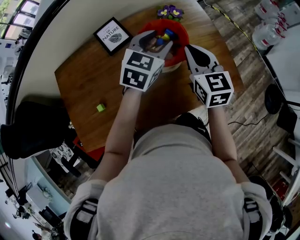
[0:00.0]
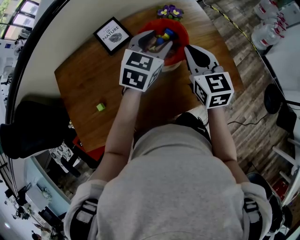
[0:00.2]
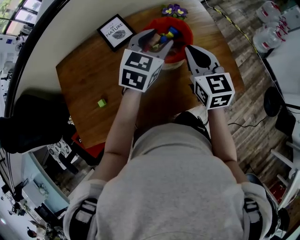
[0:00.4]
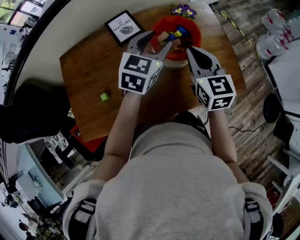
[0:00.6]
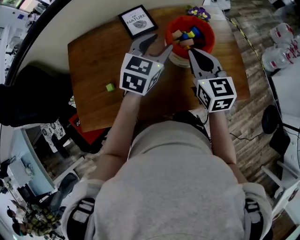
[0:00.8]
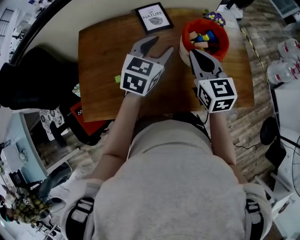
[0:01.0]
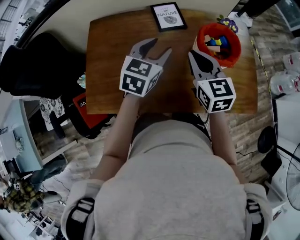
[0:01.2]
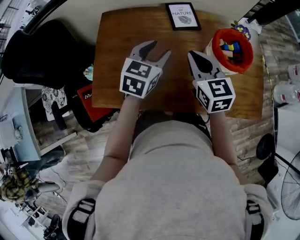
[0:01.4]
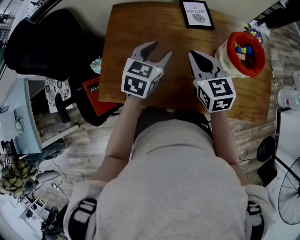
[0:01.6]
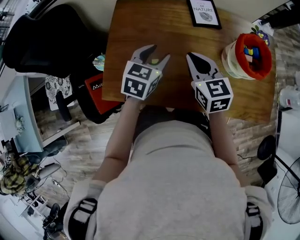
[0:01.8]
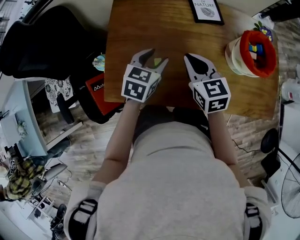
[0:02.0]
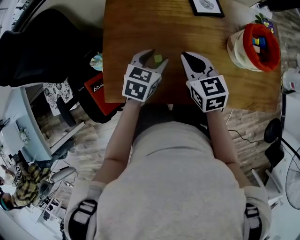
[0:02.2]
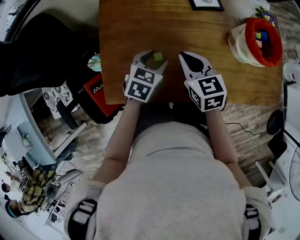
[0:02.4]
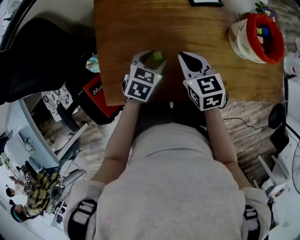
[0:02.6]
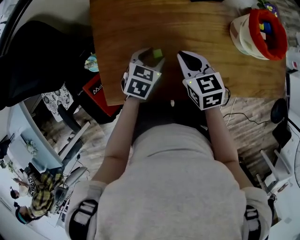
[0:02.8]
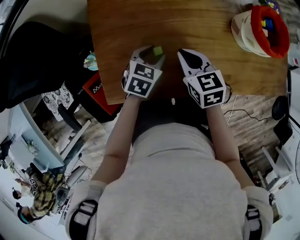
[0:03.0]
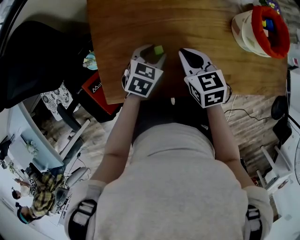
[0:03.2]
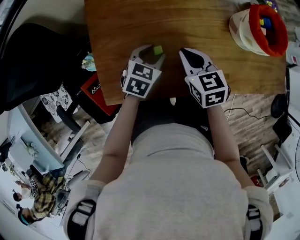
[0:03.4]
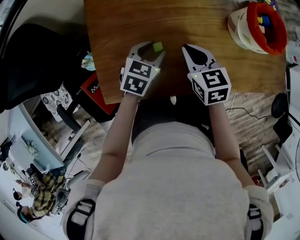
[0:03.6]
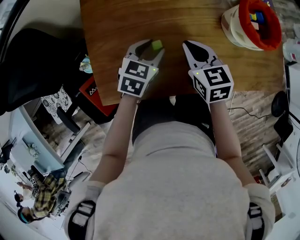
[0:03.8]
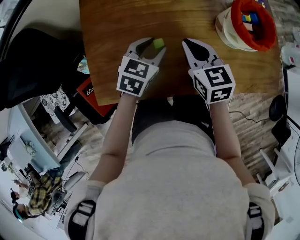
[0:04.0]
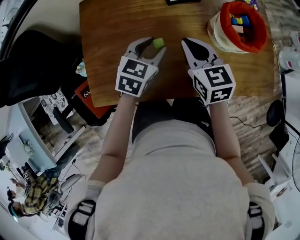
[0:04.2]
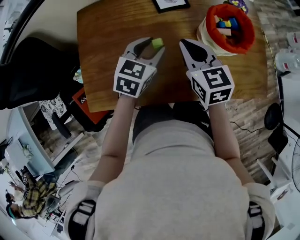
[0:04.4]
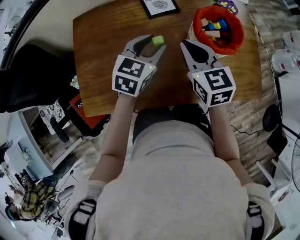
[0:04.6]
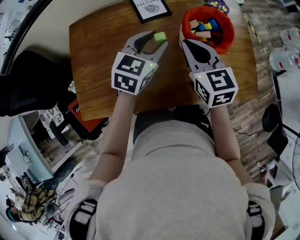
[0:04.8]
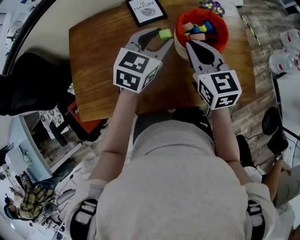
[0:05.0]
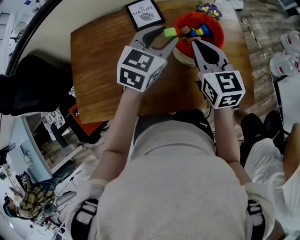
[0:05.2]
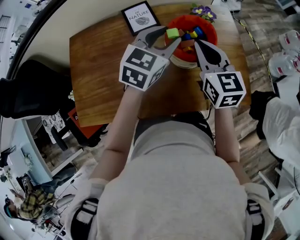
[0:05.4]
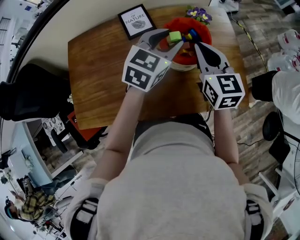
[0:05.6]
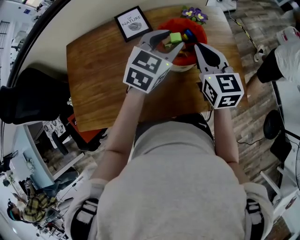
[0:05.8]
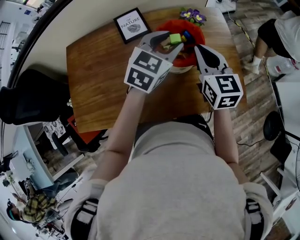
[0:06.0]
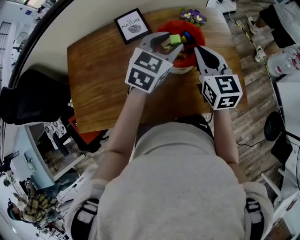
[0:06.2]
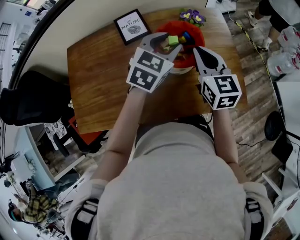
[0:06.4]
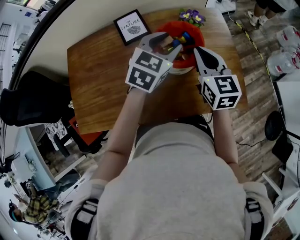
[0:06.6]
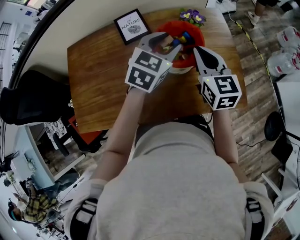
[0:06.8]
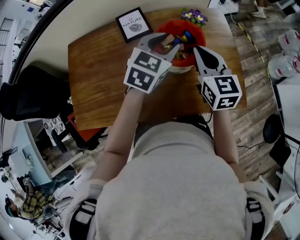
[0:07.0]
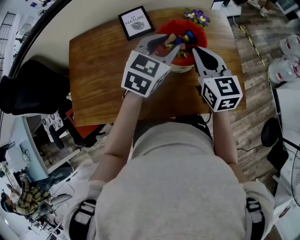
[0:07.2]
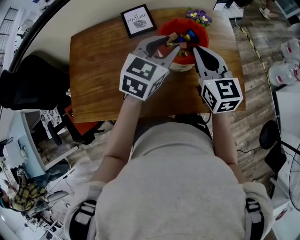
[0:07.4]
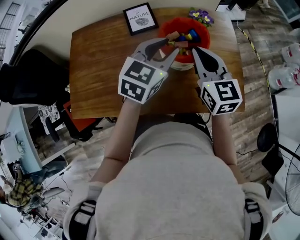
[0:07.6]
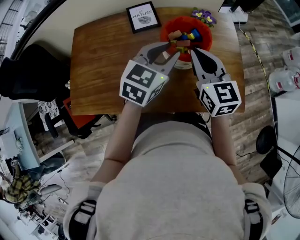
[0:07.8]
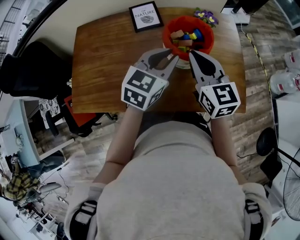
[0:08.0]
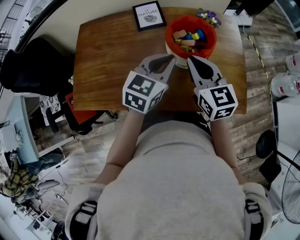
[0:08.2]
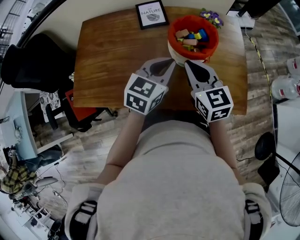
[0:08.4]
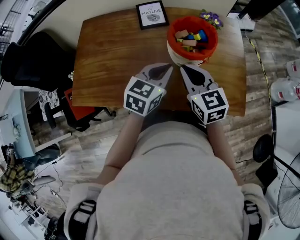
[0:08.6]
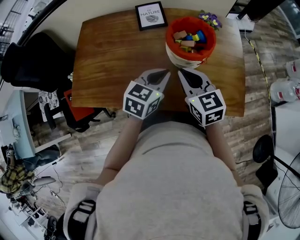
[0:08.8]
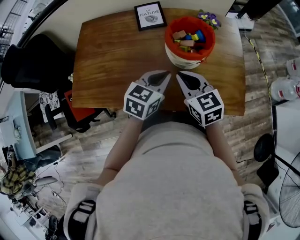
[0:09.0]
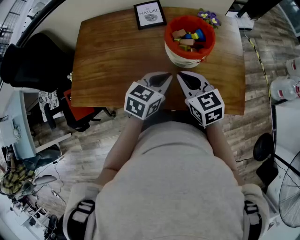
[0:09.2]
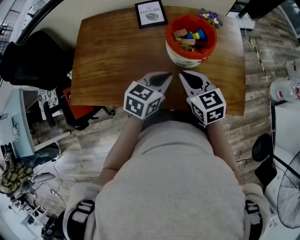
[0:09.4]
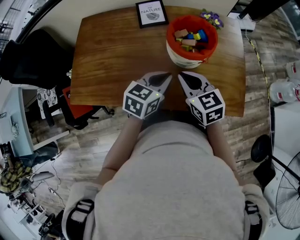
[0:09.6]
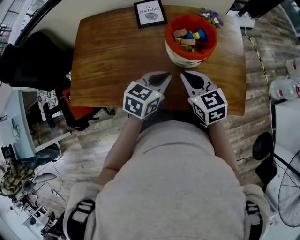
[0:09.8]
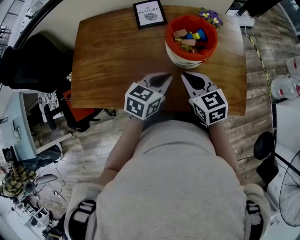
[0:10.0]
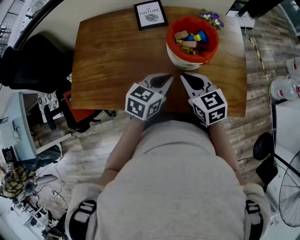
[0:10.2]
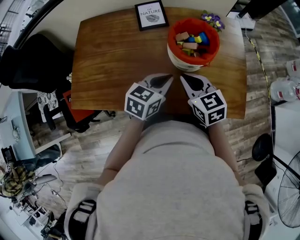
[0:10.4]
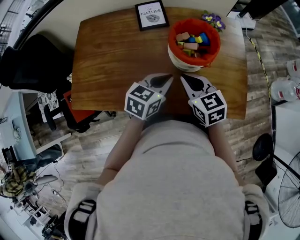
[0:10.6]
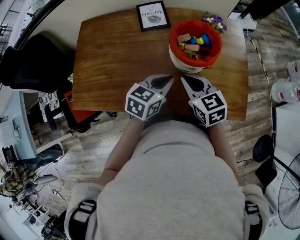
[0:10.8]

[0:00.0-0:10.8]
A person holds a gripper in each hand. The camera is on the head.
0:00.0 to 0:01.6: The right gripper changes place by roughly 30 cm, and changes its angle by some 30 degrees, while the left gripper ends up approximately 35 cm from where it was, and turns by some 30 degrees.
0:01.6 to 0:03.0: The right gripper goes some 15 cm downward and to the left, and rotates approximately 20 degrees. Meanwhile the left gripper heads downward, covering approximately 15 cm, and swivels about 20 degrees.
0:03.0 to 0:04.6: The two grippers go some 25 cm to the right, upward and forward. The left gripper swivels some 20 degrees.
0:04.6 to 0:06.2: The two grippers go some 20 cm to the right.
0:06.2 to 0:07.8: The right gripper moves some 5 cm. The left gripper moves backward, some 5 cm.
0:07.8 to 0:09.2: The two grippers go about 10 cm downward and backward. The right gripper swivels some 20 degrees; the left gripper closes up.
0:09.2 to 0:10.8: The grippers stay close to where they were, moving slightly.

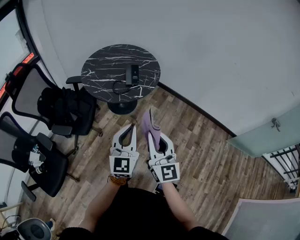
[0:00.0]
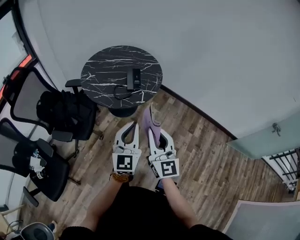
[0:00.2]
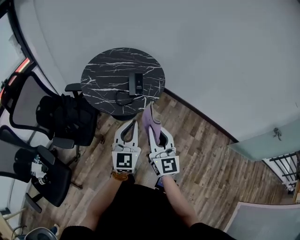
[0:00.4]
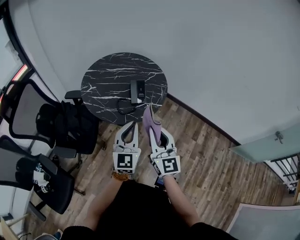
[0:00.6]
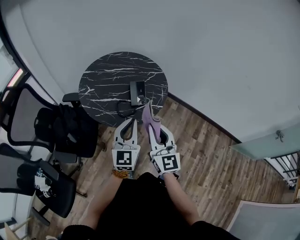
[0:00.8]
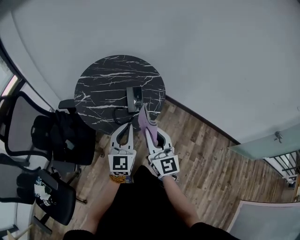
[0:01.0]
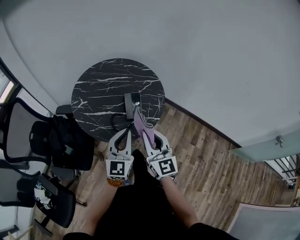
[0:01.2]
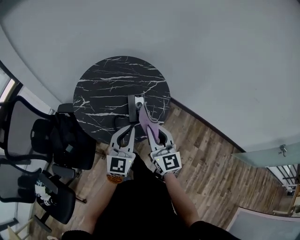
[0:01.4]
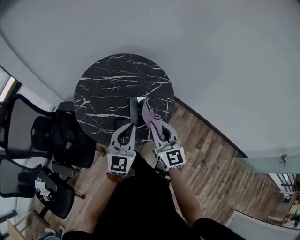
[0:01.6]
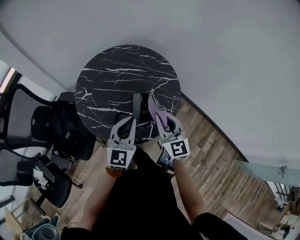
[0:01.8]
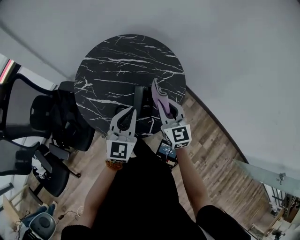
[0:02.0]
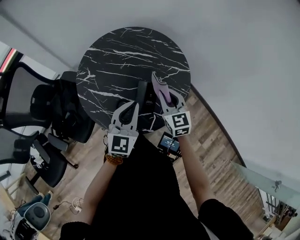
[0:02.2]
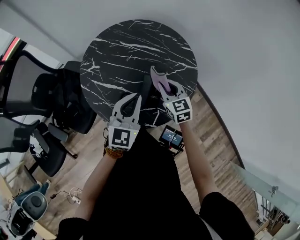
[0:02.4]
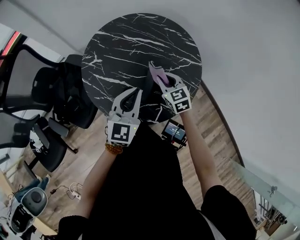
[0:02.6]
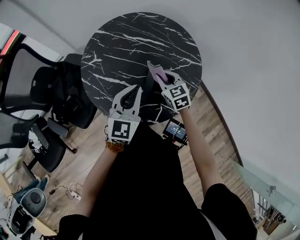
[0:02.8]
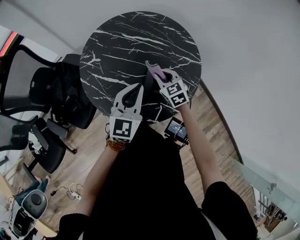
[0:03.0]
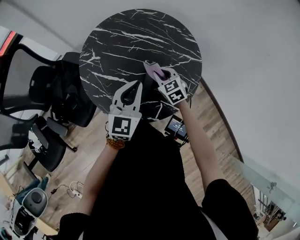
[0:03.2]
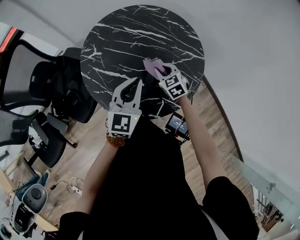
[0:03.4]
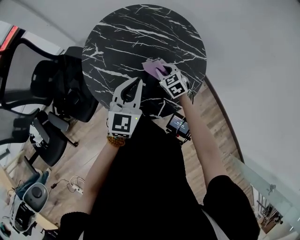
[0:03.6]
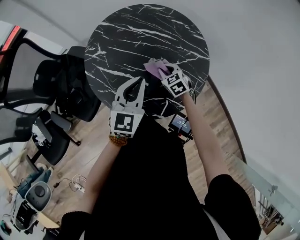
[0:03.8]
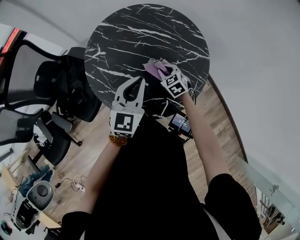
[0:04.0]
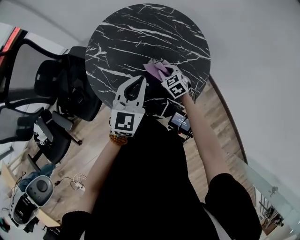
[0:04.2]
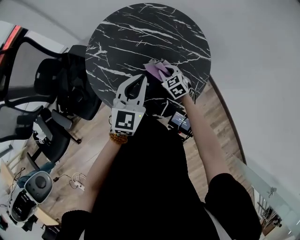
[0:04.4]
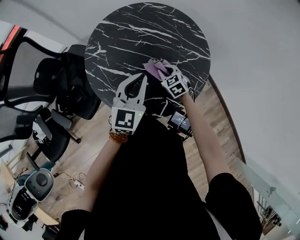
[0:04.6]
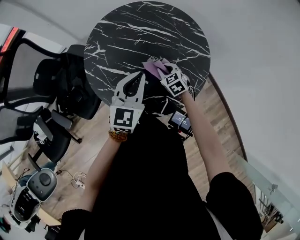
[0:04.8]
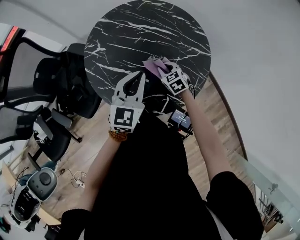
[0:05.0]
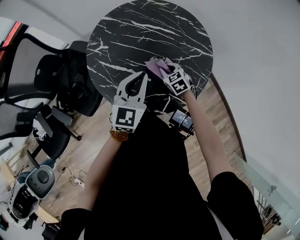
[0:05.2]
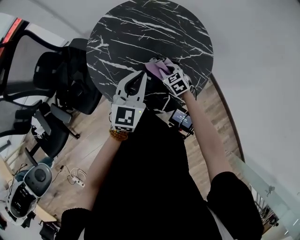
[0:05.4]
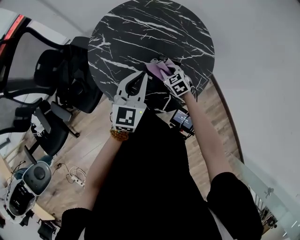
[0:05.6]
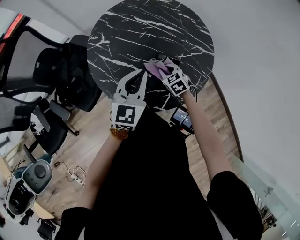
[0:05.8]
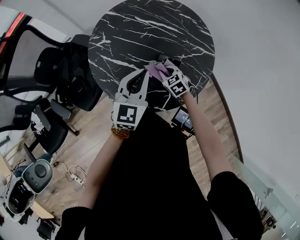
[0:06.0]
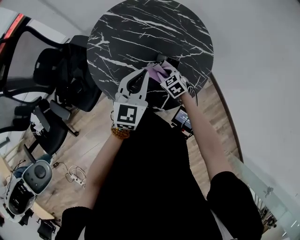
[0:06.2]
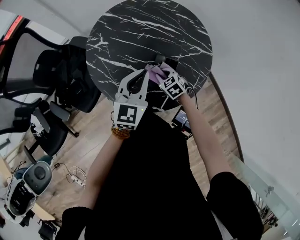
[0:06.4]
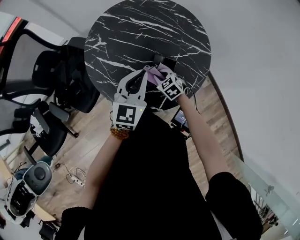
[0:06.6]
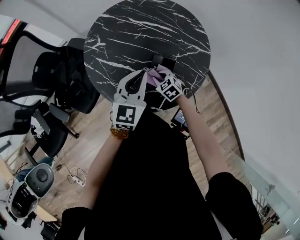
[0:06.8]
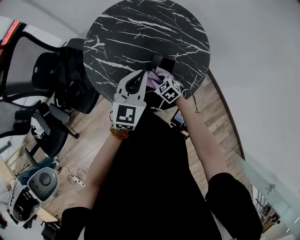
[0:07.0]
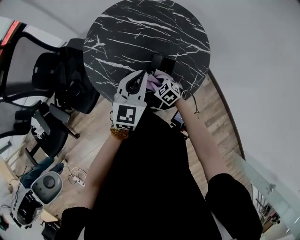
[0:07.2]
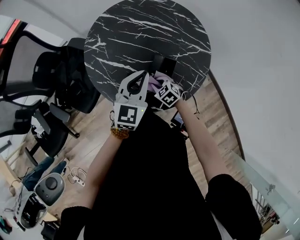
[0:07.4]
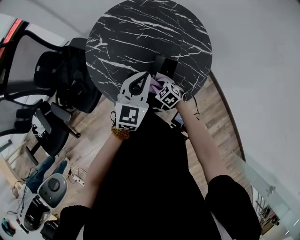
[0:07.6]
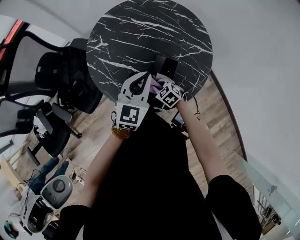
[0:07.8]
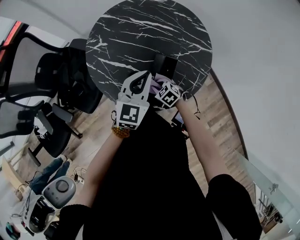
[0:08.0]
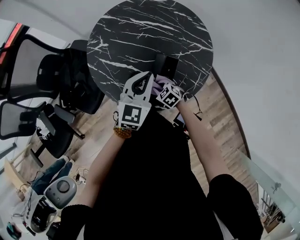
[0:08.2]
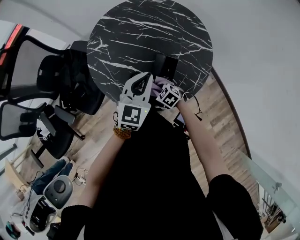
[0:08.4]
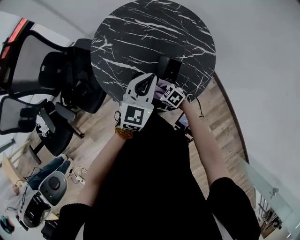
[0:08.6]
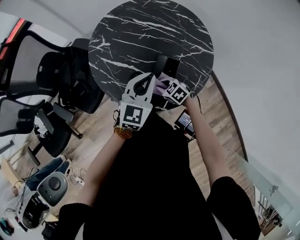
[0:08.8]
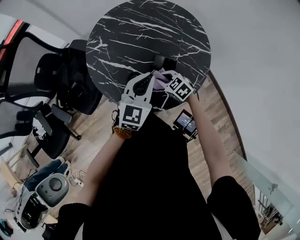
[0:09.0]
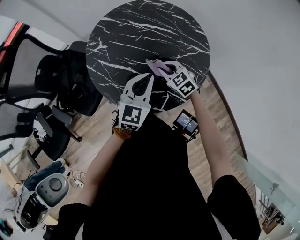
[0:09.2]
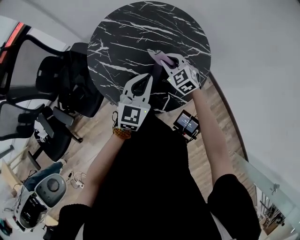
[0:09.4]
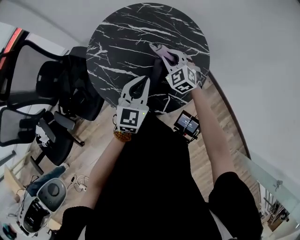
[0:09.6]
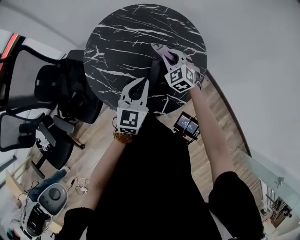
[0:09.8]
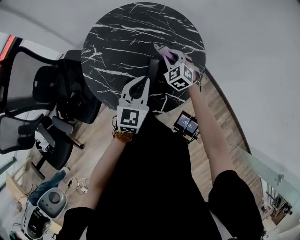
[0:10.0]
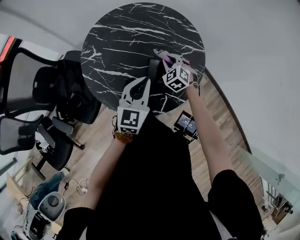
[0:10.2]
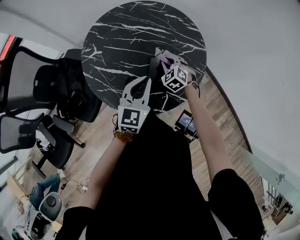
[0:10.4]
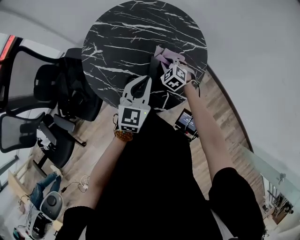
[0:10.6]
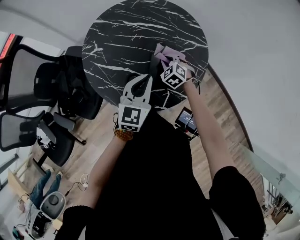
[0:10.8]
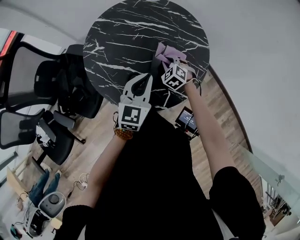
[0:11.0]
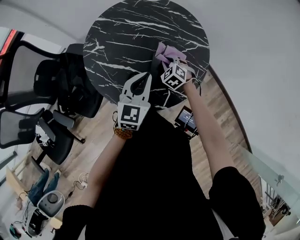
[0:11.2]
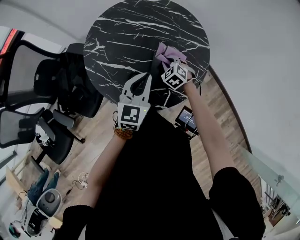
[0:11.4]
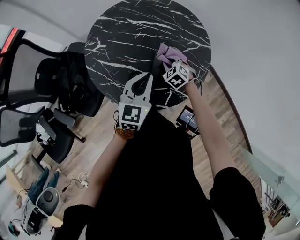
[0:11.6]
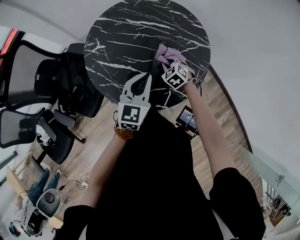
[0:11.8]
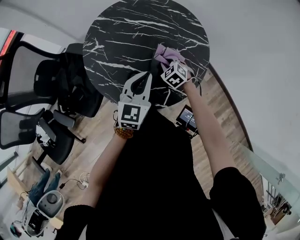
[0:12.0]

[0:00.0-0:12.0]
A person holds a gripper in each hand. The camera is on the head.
0:00.0 to 0:01.6: Both grippers are carried forward, roughly 50 cm.
0:01.6 to 0:03.0: The right gripper travels downward and forward by roughly 30 cm, and tilts its fingers some 30 degrees downward, while the left gripper heads forward and downward, covering some 15 cm.
0:03.0 to 0:04.4: The right gripper travels downward by about 10 cm.
0:04.4 to 0:06.0: The right gripper changes place by about 5 cm.
0:06.0 to 0:07.6: The right gripper goes some 5 cm backward.
0:07.6 to 0:09.0: The right gripper goes some 5 cm upward.
0:09.0 to 0:10.4: The right gripper goes approximately 10 cm forward and to the right, and changes its angle by roughly 30 degrees.
0:10.4 to 0:12.0: The grippers stay close to where they were, moving slightly.

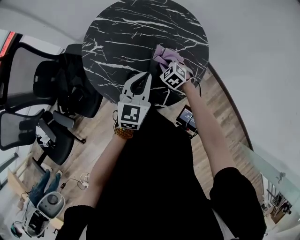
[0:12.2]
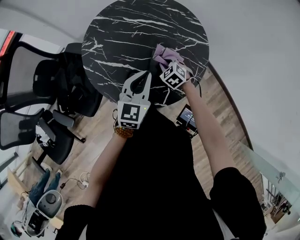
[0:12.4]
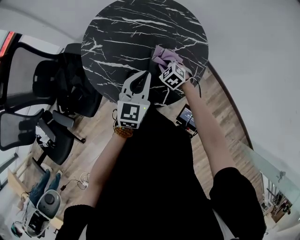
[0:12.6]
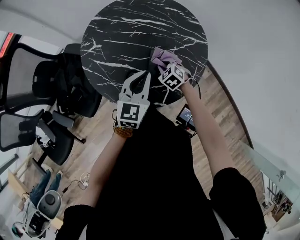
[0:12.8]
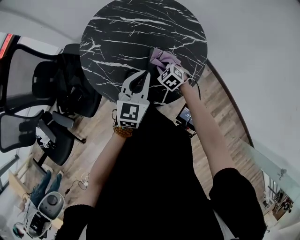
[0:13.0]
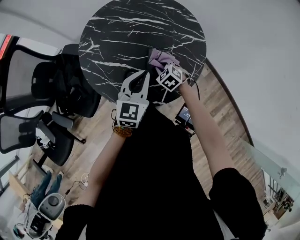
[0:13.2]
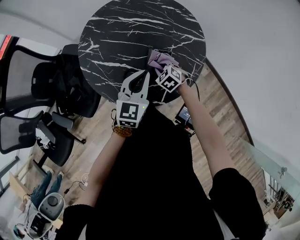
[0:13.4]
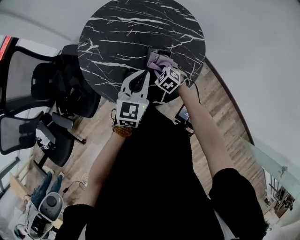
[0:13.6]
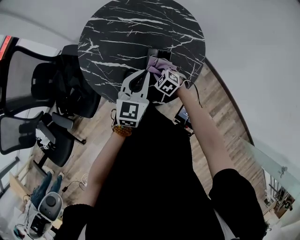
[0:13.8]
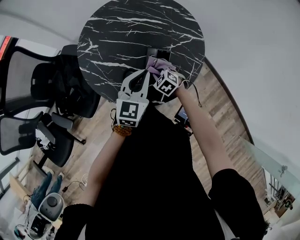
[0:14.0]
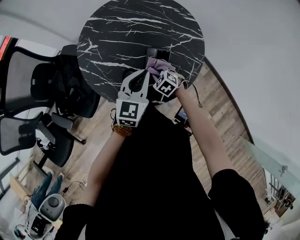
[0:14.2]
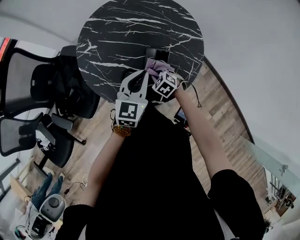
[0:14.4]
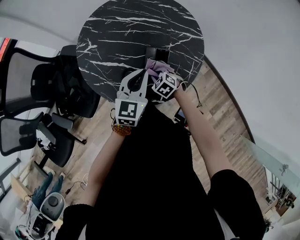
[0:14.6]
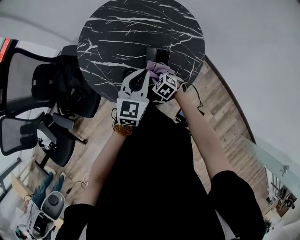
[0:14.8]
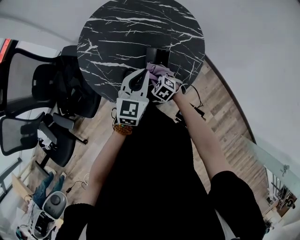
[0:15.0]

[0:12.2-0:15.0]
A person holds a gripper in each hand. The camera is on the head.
0:12.2 to 0:13.6: The right gripper ends up approximately 5 cm from where it was.
0:13.6 to 0:15.0: The right gripper is displaced backward by approximately 5 cm.
